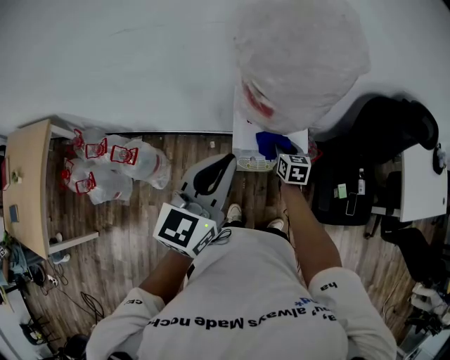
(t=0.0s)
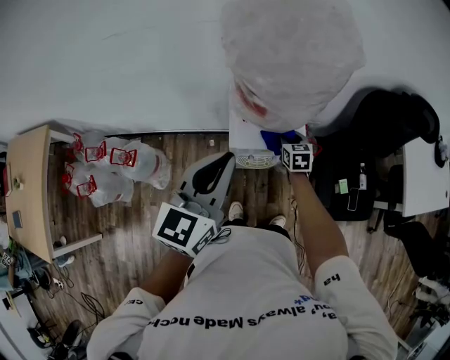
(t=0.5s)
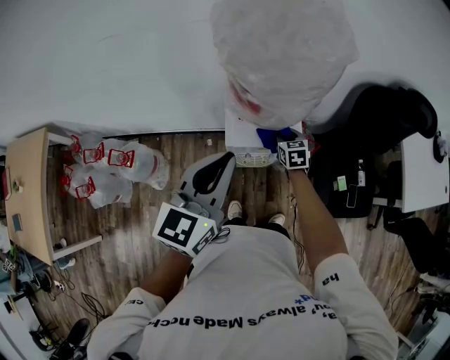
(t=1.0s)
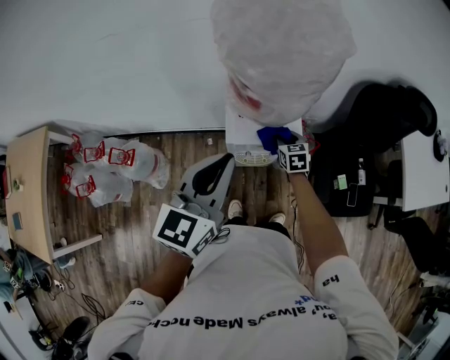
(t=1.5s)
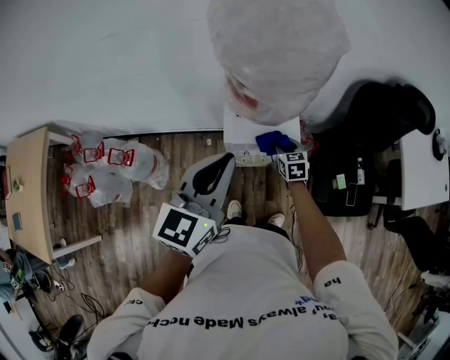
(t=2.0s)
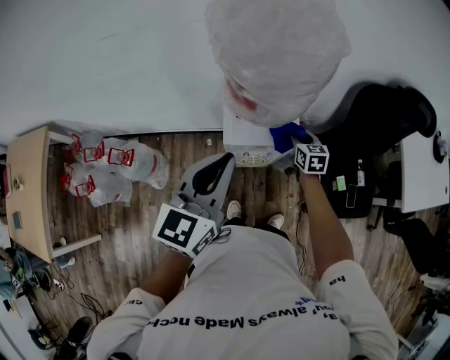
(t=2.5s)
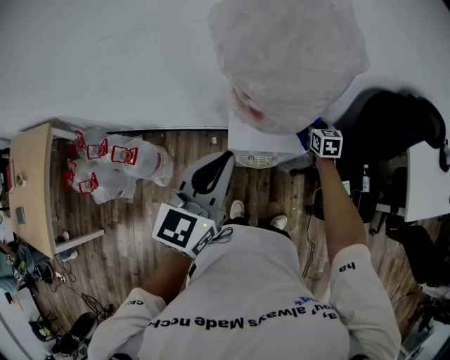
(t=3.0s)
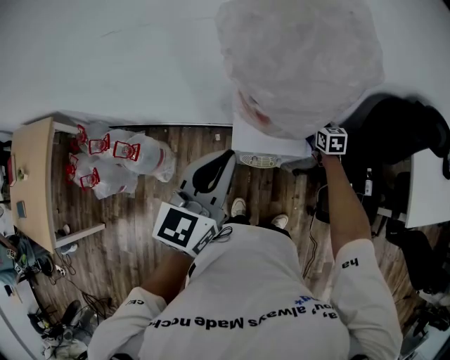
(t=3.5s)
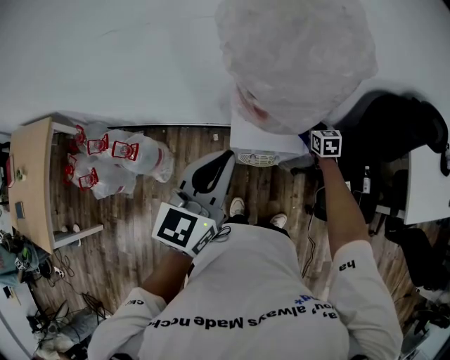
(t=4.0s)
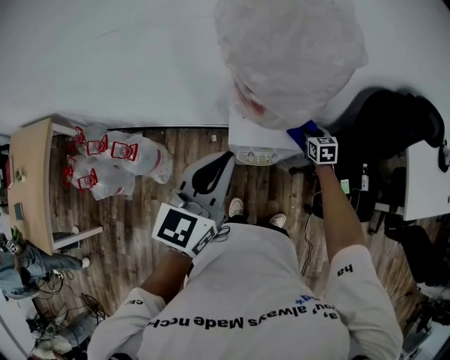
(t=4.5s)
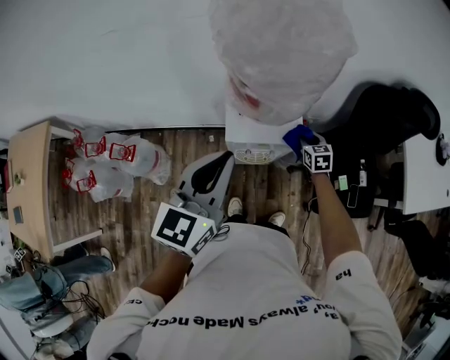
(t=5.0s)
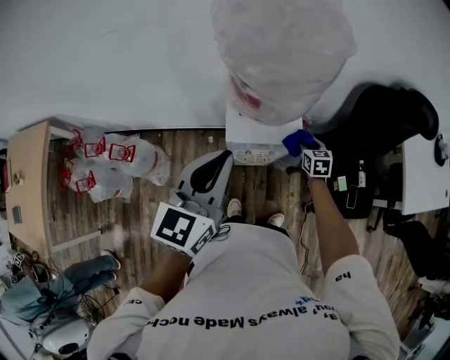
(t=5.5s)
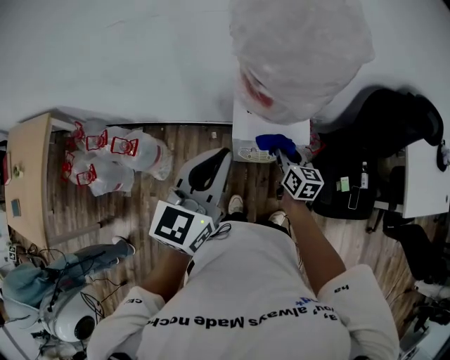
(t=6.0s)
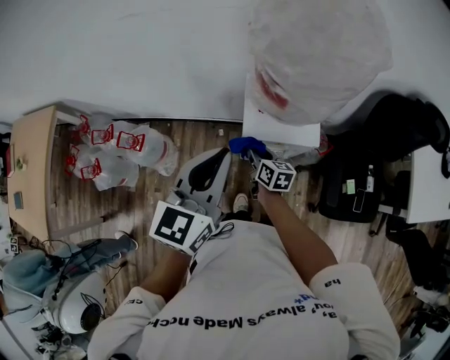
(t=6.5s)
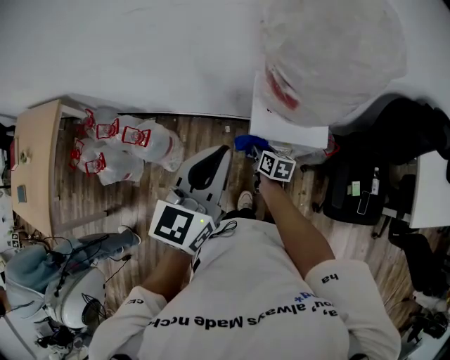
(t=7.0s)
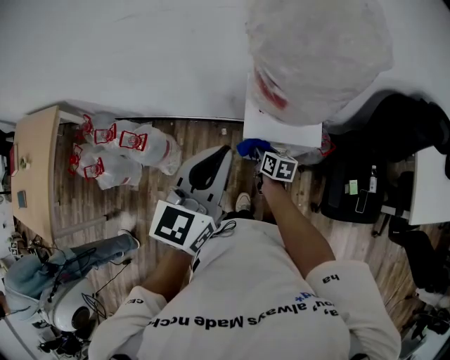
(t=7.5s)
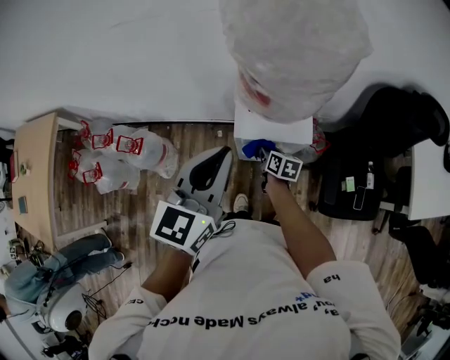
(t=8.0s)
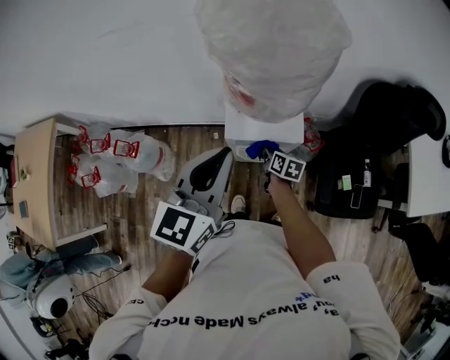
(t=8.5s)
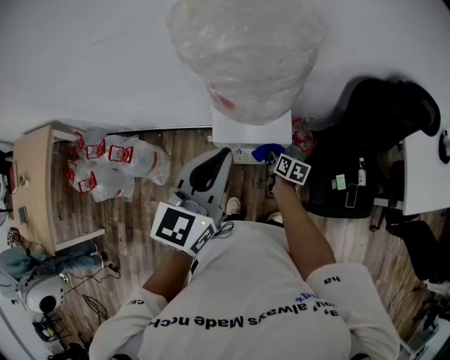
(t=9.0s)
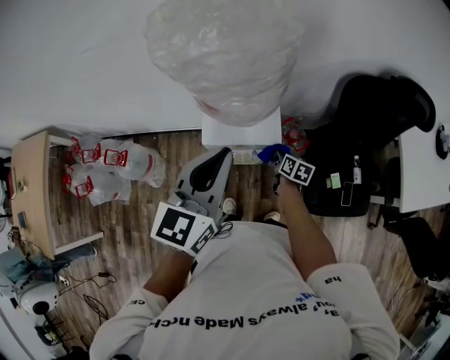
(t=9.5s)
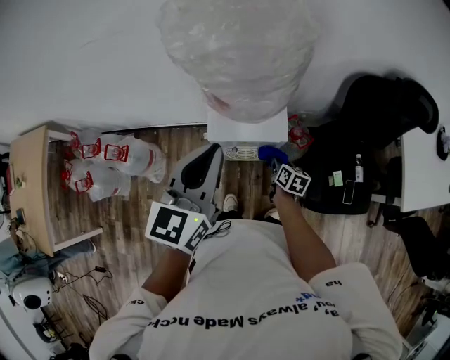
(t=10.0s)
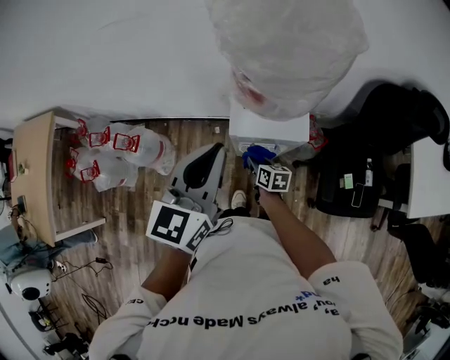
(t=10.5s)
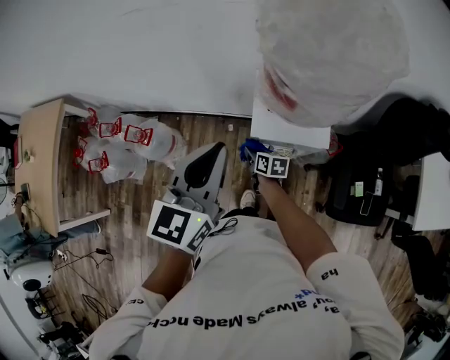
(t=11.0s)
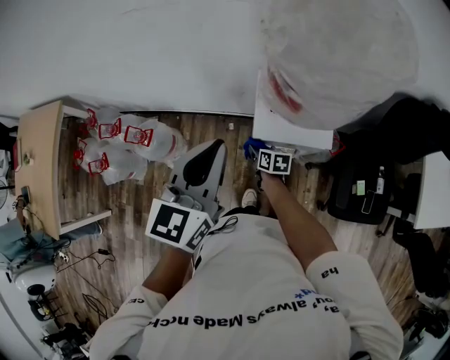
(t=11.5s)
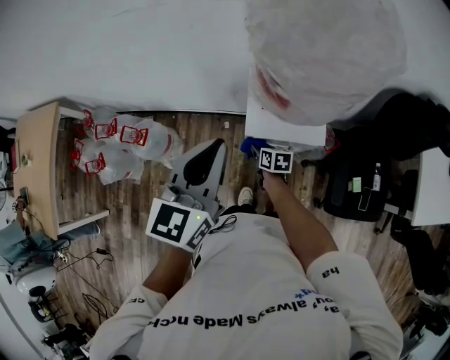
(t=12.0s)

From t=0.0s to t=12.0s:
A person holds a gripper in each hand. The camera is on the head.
From t=0.0s to t=2.0s: The grippers move only a little.
From t=2.0s to t=4.0s: The right gripper heads forward and to the right, covering approximately 15 cm.
From t=4.0s to t=6.0s: The right gripper travels backward, to the left and upward by some 20 cm, and turns by some 30 degrees.
From t=6.0s to t=8.0s: The right gripper is displaced downward by some 10 cm, reaches approximately 15 cm to the left, then returns, and swivels roughly 20 degrees.
From t=8.0s to t=10.0s: The left gripper shifts roughly 5 cm to the right. The right gripper travels to the right by about 15 cm.
From t=10.0s to t=12.0s: The right gripper shifts about 20 cm to the left, and turns by roughly 20 degrees; the left gripper heads to the left, covering roughly 10 cm.

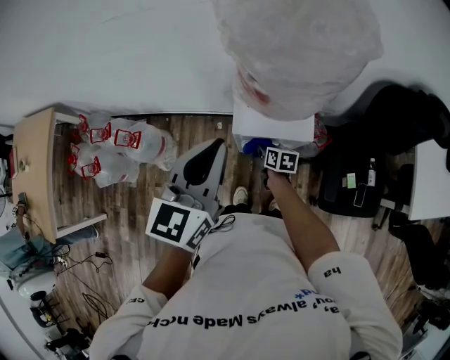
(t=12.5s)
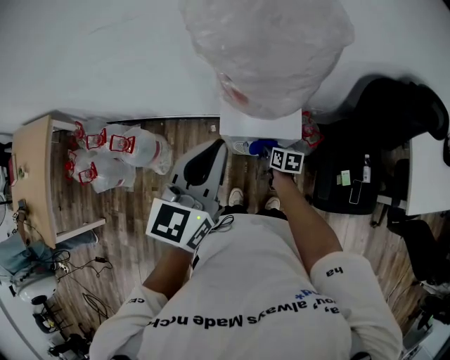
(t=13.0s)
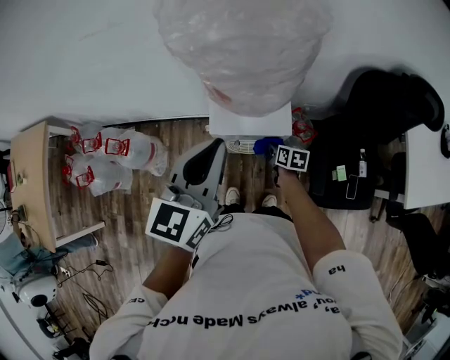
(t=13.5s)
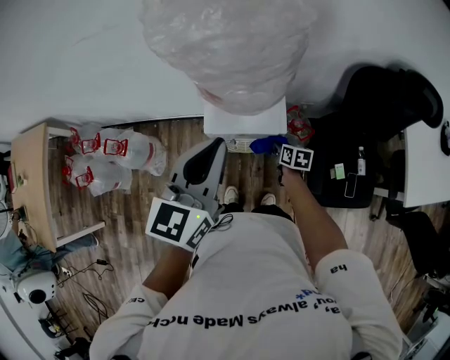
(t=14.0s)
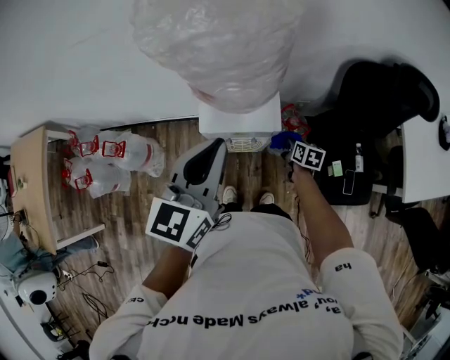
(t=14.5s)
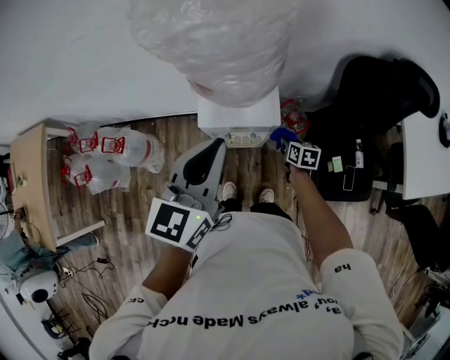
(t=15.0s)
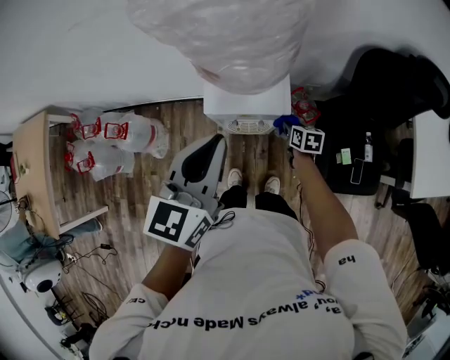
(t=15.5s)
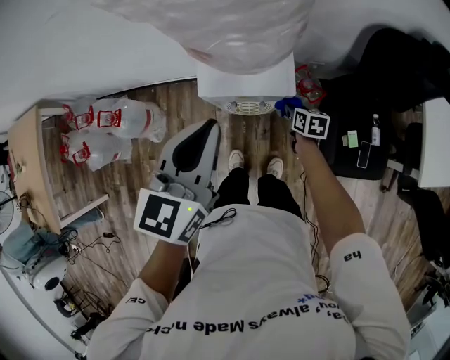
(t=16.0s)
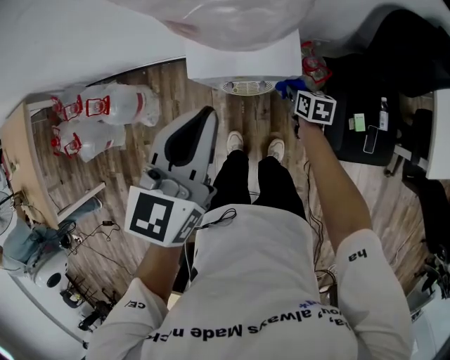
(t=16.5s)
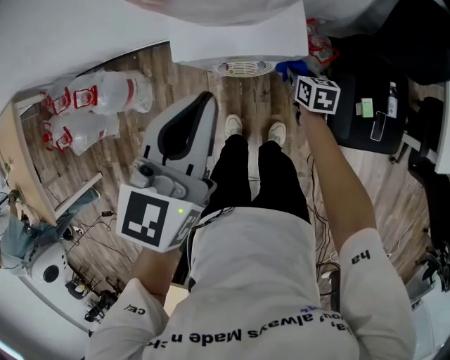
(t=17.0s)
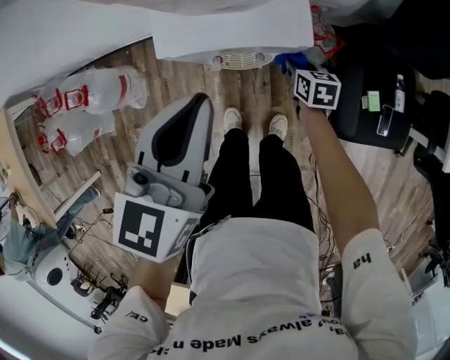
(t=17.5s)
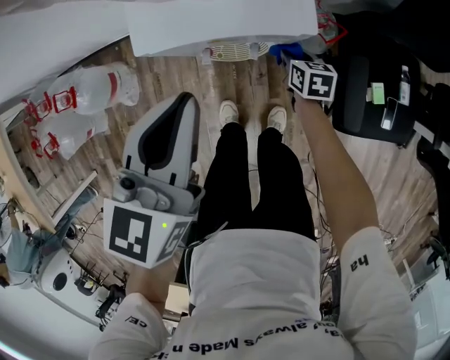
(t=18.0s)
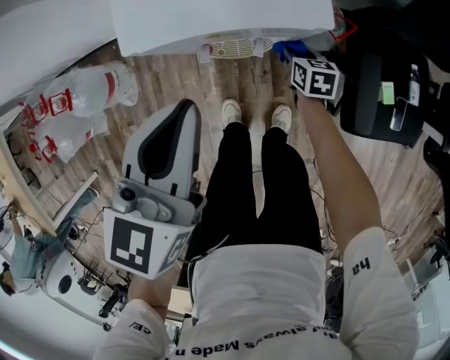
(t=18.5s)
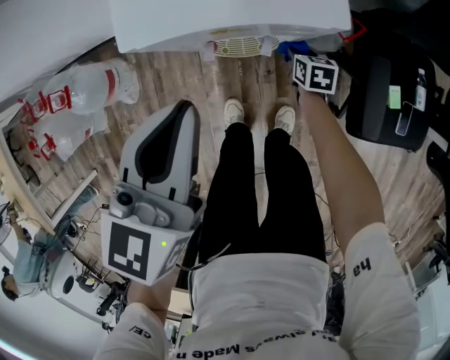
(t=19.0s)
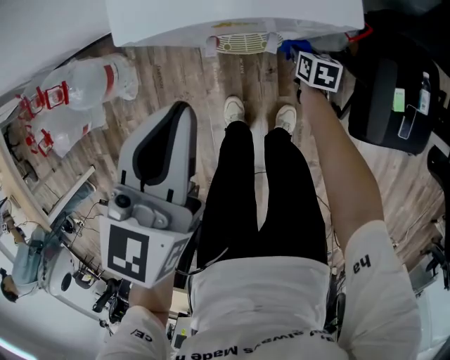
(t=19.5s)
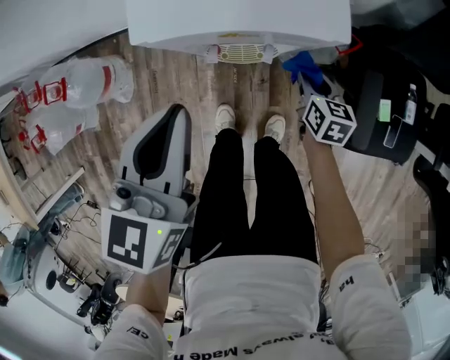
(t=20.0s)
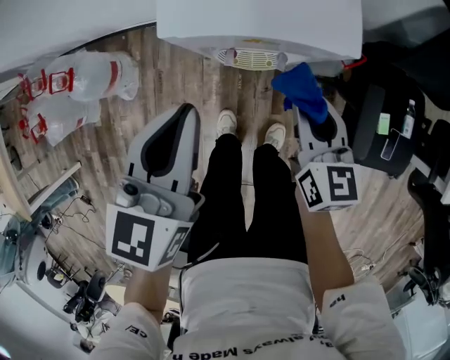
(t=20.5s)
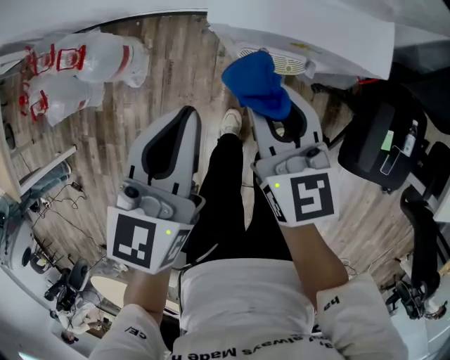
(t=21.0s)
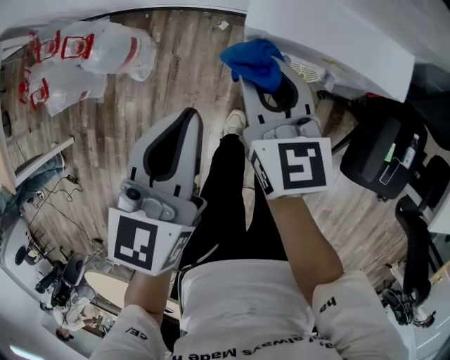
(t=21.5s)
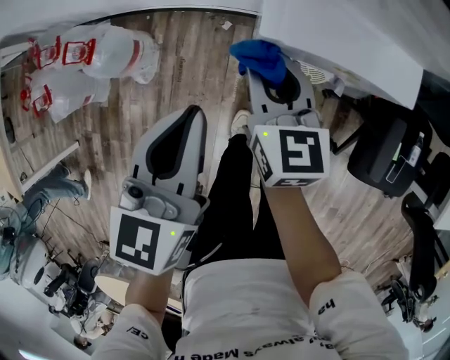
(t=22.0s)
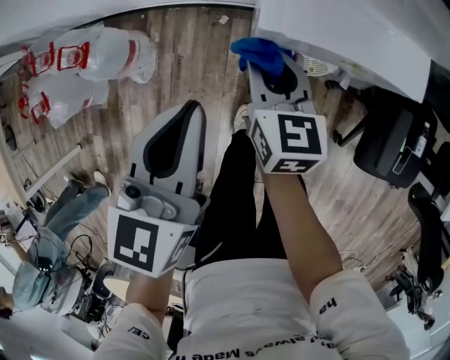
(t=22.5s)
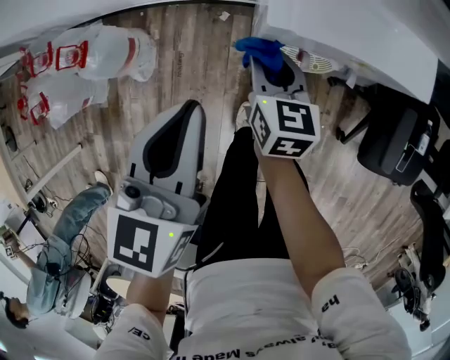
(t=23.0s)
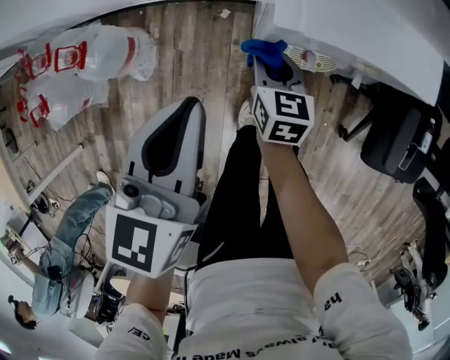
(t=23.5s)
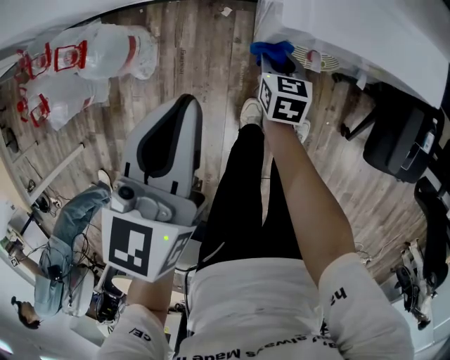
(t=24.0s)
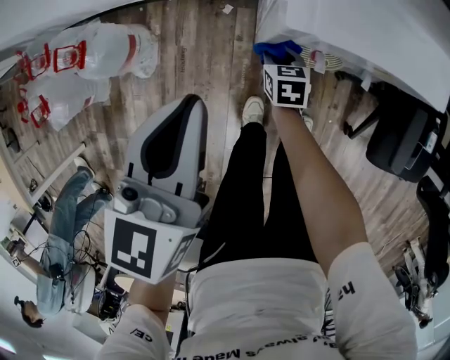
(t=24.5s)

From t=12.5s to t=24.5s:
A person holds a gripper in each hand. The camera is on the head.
From t=12.5s to t=14.5s: The left gripper heads to the right, covering some 10 cm; the right gripper is displaced to the right by approximately 25 cm.
From t=14.5s to t=16.5s: The left gripper is displaced downward by some 10 cm; the right gripper moves downward and to the left, about 10 cm.
From t=16.5s to t=18.5s: Both grippers move downward, about 15 cm.
From t=18.5s to t=20.5s: The right gripper heads upward, covering some 20 cm, and turns by approximately 30 degrees. The left gripper shifts by some 5 cm.
From t=20.5s to t=22.5s: The right gripper heads to the left and forward, covering roughly 25 cm, while the left gripper travels to the left by about 10 cm.
From t=22.5s to t=24.5s: The right gripper heads downward, covering approximately 25 cm, and changes its angle by roughly 30 degrees.

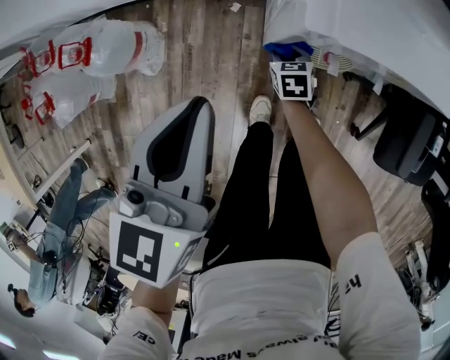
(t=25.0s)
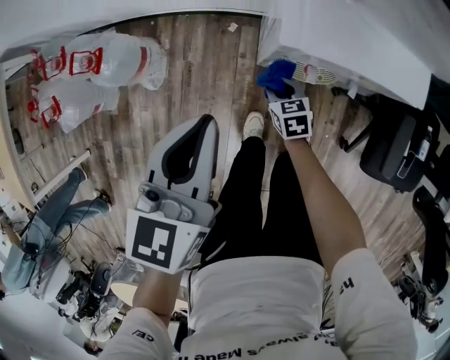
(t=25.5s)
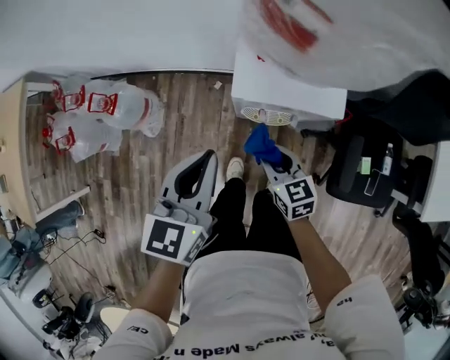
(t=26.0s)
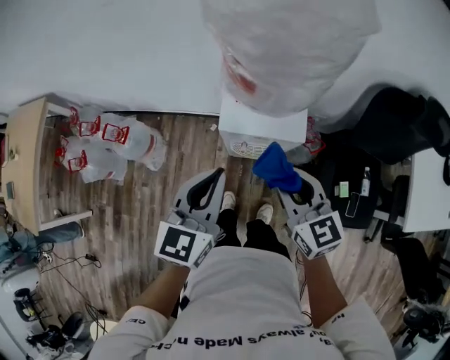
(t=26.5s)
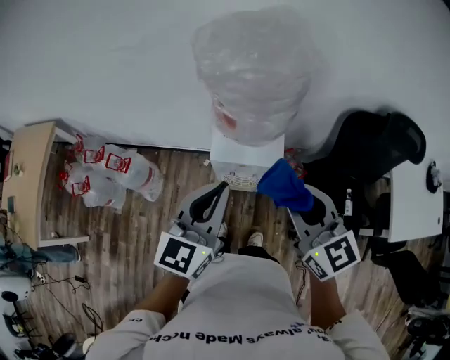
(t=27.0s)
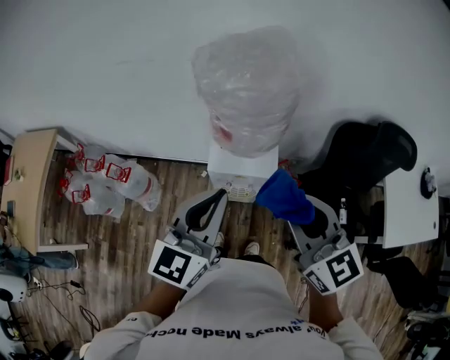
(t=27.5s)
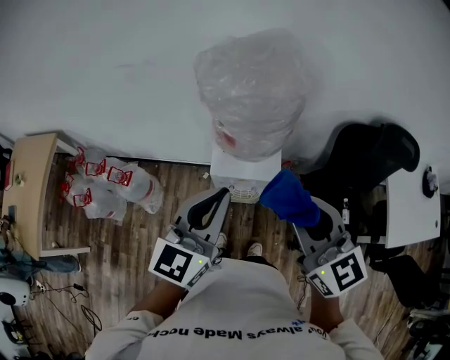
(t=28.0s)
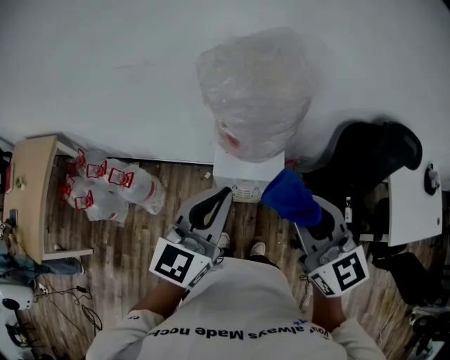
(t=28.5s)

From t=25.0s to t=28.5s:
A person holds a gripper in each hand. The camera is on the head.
From t=25.0s to t=27.0s: The left gripper heads upward and to the right, covering about 40 cm, and swivels some 30 degrees. The right gripper goes some 70 cm upward, and points its fingers about 40 degrees further upward.
From t=27.0s to t=28.5s: The two grippers go some 5 cm upward.
